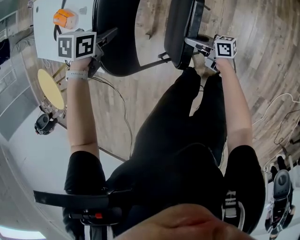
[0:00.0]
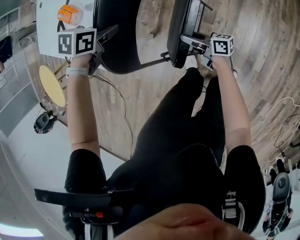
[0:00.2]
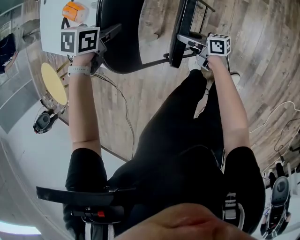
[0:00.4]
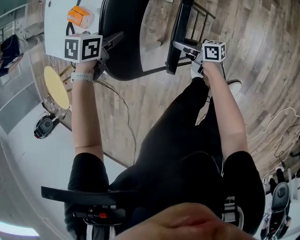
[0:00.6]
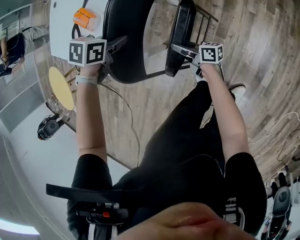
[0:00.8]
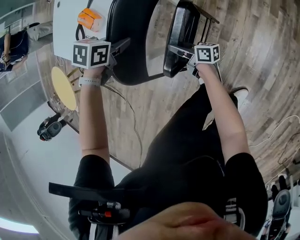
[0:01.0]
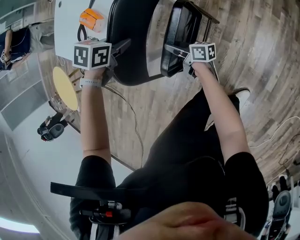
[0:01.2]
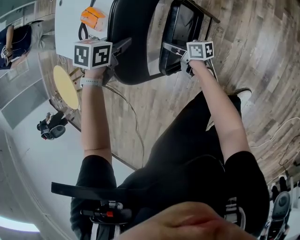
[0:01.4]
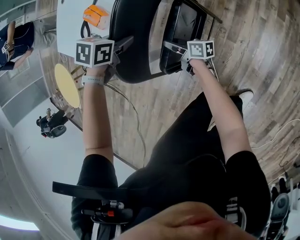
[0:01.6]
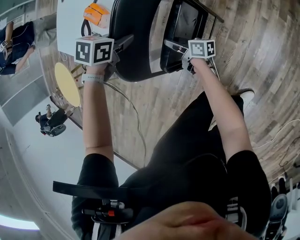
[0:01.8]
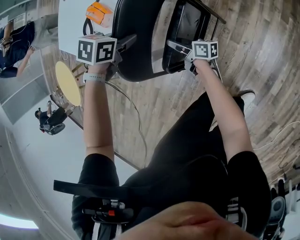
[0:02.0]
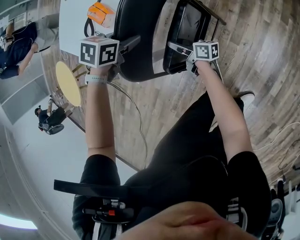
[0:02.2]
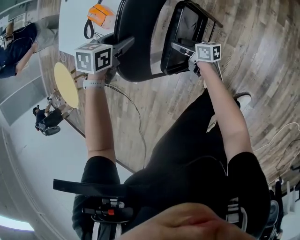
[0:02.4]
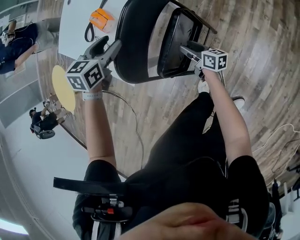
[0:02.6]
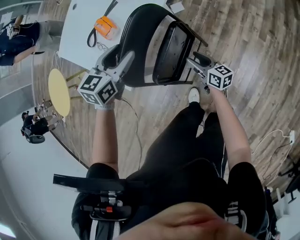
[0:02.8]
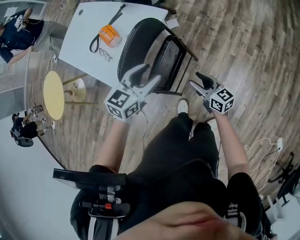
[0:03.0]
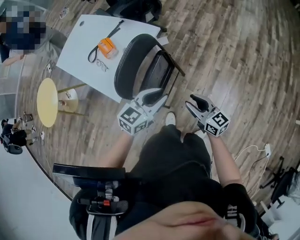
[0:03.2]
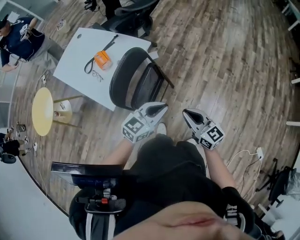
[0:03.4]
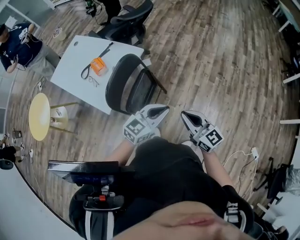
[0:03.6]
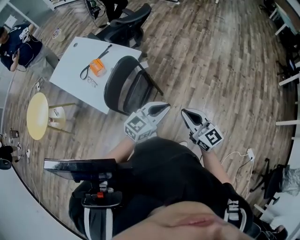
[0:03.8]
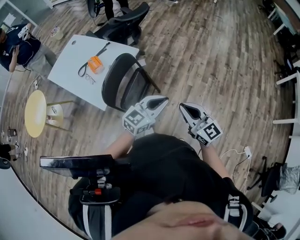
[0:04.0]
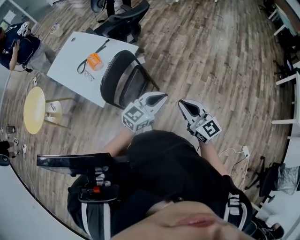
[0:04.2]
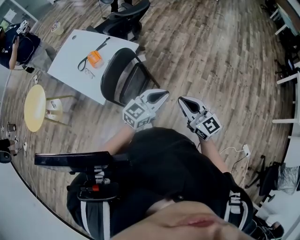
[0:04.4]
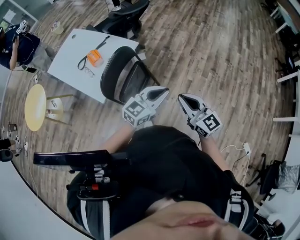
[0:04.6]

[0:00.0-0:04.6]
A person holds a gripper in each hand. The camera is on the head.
0.0 to 1.6 s: The left gripper moves some 10 cm; the right gripper changes place by some 25 cm.
1.6 to 3.0 s: The right gripper heads to the right and upward, covering some 30 cm, and rolls counterclockwise, seen from behind, by about 40 degrees, while the left gripper is displaced upward, to the right and backward by roughly 25 cm, points its fingers roughly 50 degrees further upward, and opens up.
3.0 to 4.6 s: The right gripper shifts roughly 30 cm upward and backward, swivels about 30 degrees, and closes its fingers, while the left gripper goes approximately 25 cm to the right, upward and backward, turns by about 20 degrees, and closes its fingers.

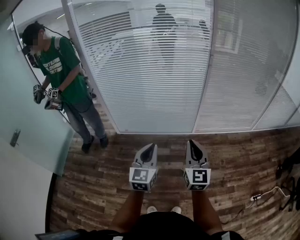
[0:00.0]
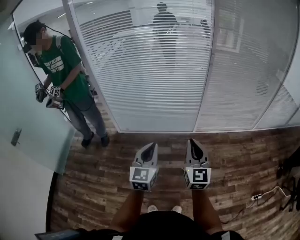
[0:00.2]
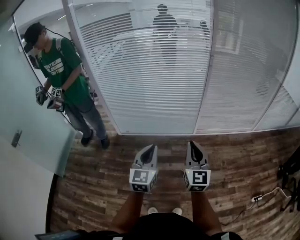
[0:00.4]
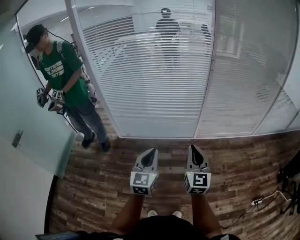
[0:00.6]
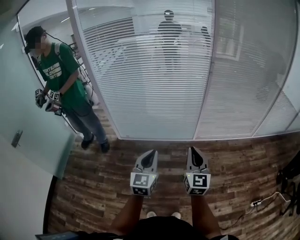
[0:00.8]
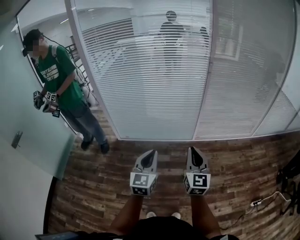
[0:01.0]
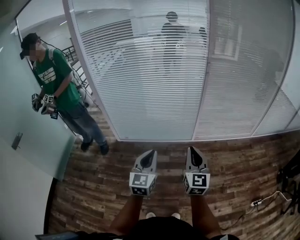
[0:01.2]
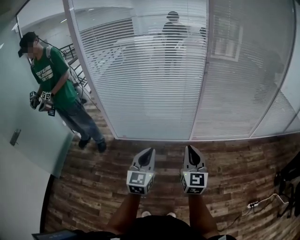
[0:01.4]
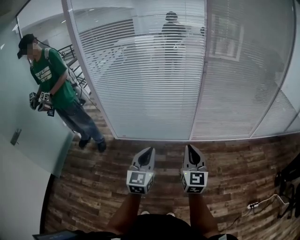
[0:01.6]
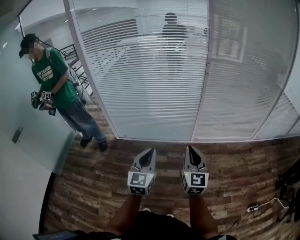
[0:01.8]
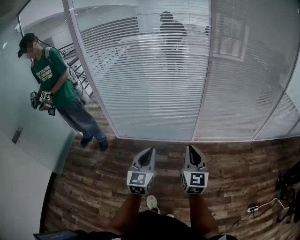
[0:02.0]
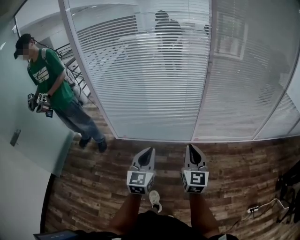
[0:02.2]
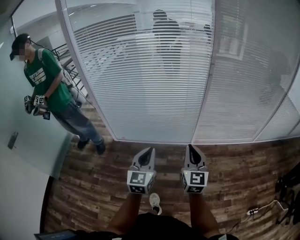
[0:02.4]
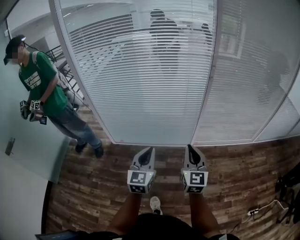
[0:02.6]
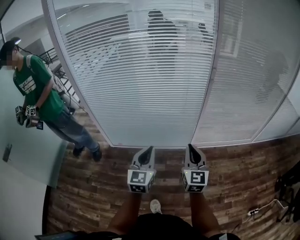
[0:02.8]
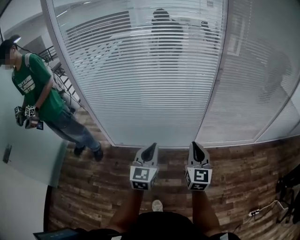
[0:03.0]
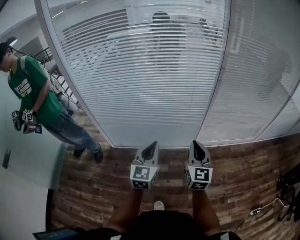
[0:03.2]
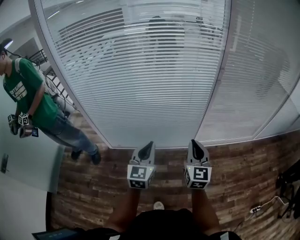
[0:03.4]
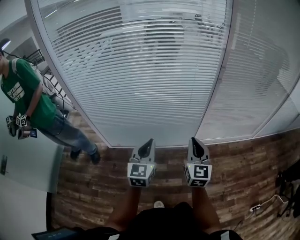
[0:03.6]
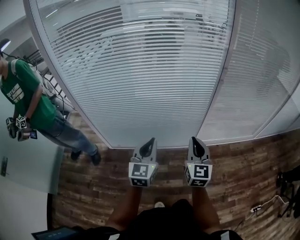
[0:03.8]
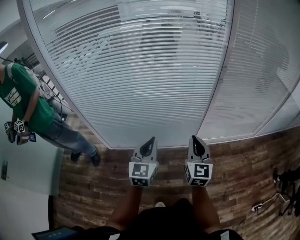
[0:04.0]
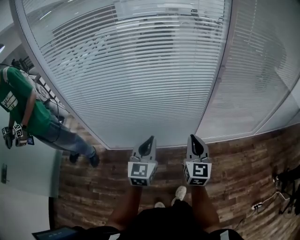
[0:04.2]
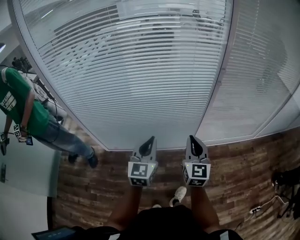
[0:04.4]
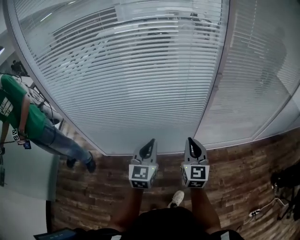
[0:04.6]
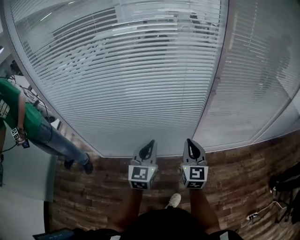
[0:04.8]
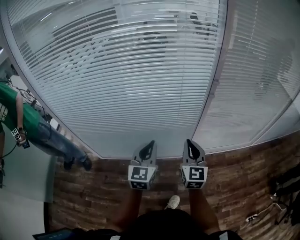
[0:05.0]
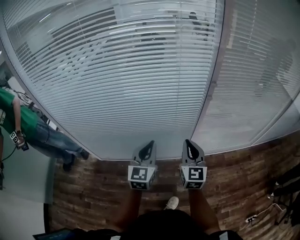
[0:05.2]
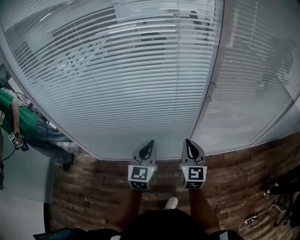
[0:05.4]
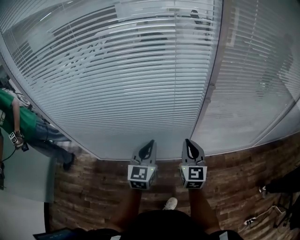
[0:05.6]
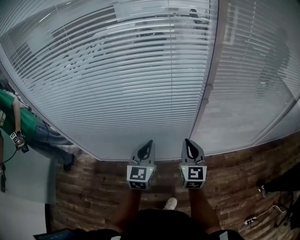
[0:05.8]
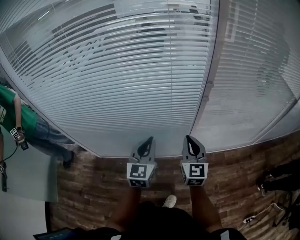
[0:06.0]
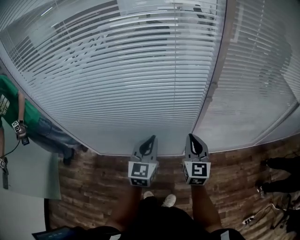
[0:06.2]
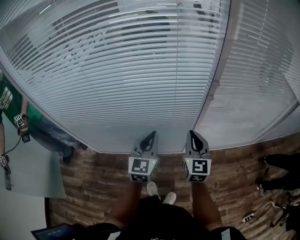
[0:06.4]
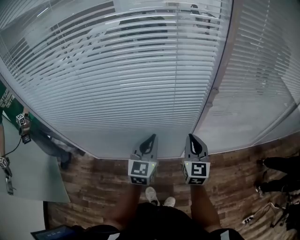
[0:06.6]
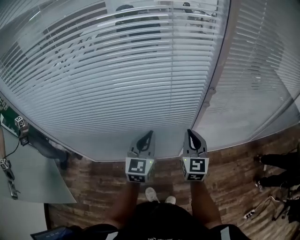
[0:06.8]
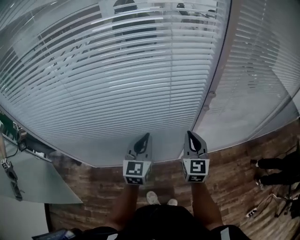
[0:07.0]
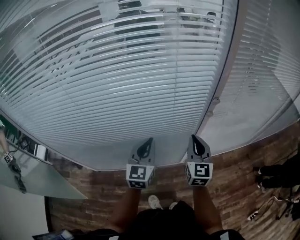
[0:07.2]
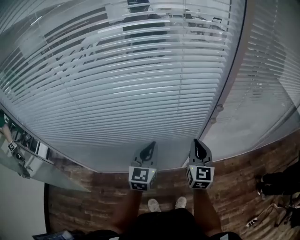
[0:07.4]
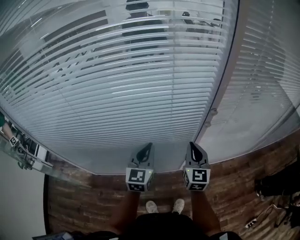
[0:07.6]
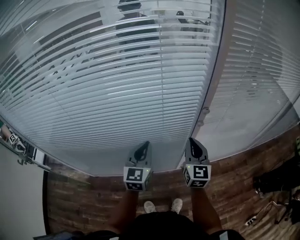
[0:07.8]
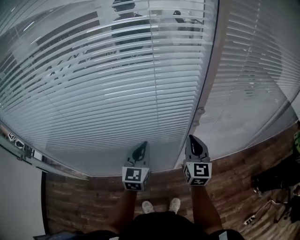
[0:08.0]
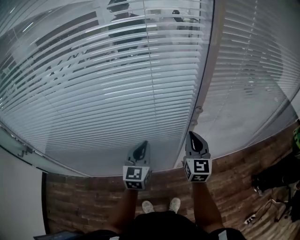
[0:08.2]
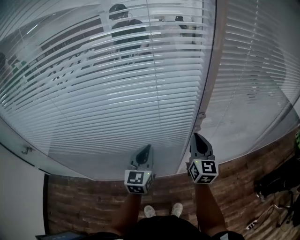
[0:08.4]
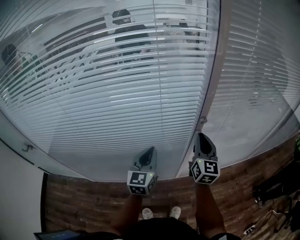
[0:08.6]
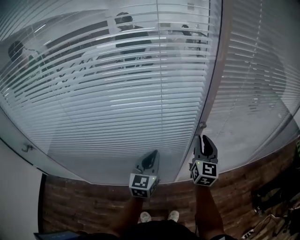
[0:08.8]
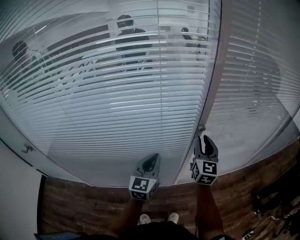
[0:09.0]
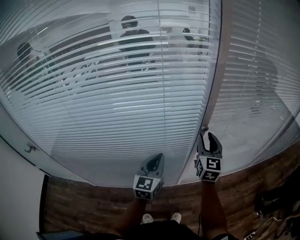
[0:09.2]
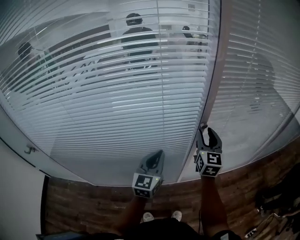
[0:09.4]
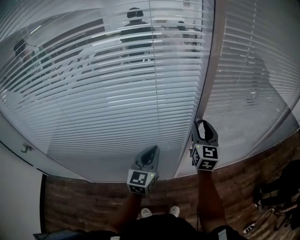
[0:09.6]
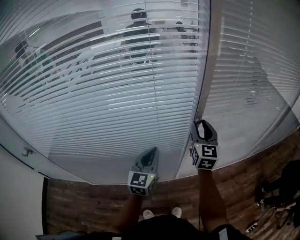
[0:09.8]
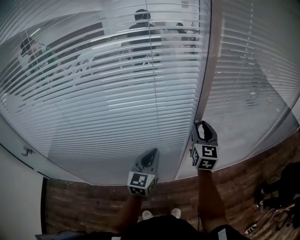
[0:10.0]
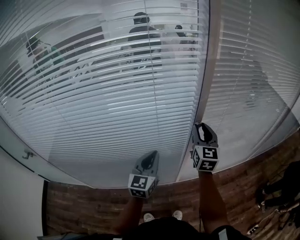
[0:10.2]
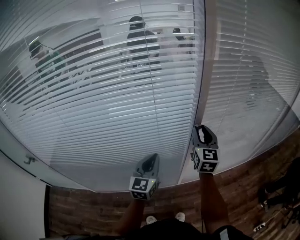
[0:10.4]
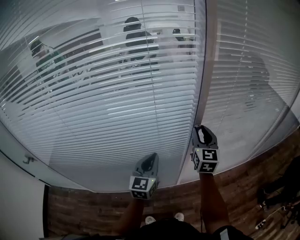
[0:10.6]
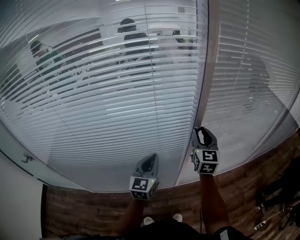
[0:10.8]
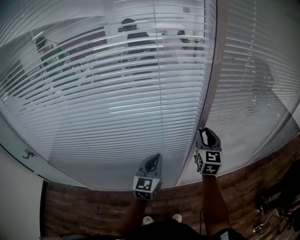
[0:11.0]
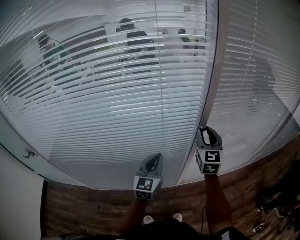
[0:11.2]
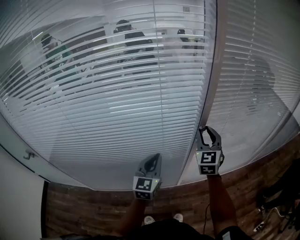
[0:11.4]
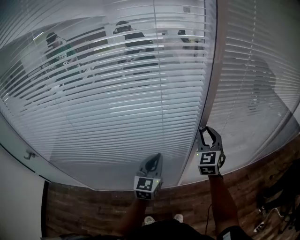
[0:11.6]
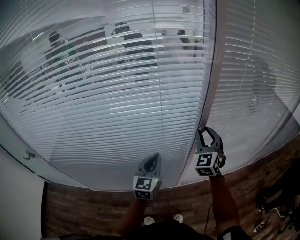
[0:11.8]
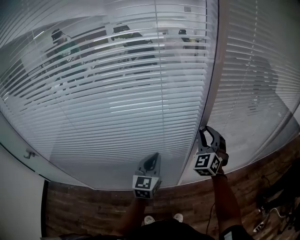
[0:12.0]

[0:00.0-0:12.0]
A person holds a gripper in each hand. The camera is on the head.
0.0 to 1.6 s: The two grippers go some 5 cm to the right.
1.6 to 3.0 s: The two grippers go roughly 25 cm forward.
3.0 to 4.4 s: Both grippers travel together forward, roughly 15 cm.
4.4 to 6.0 s: The grippers both shift forward and to the right by about 20 cm.
6.0 to 7.6 s: The two grippers go about 10 cm forward.
7.6 to 9.0 s: The left gripper goes roughly 5 cm to the right. The right gripper moves to the right, forward and upward, some 10 cm, and opens its fingers.
9.0 to 10.4 s: The grippers move only a little.
10.4 to 12.0 s: The right gripper rolls counterclockwise, seen from behind, by approximately 50 degrees.

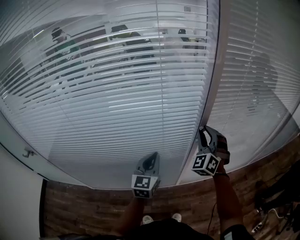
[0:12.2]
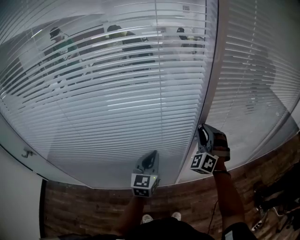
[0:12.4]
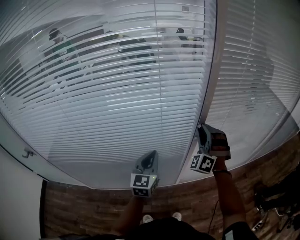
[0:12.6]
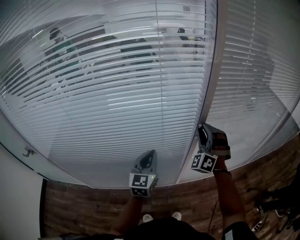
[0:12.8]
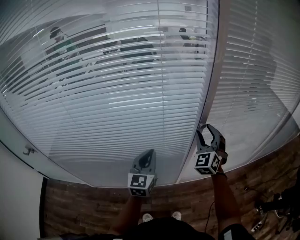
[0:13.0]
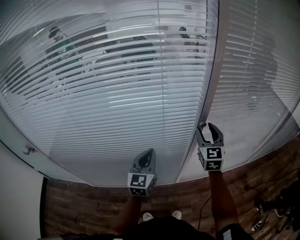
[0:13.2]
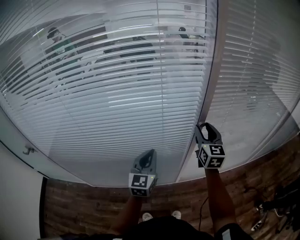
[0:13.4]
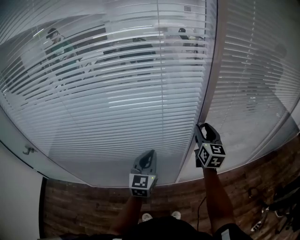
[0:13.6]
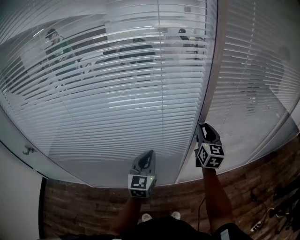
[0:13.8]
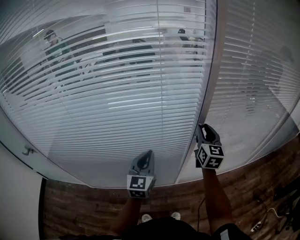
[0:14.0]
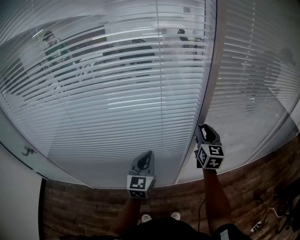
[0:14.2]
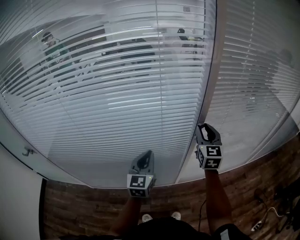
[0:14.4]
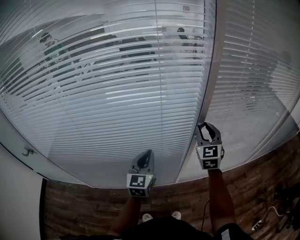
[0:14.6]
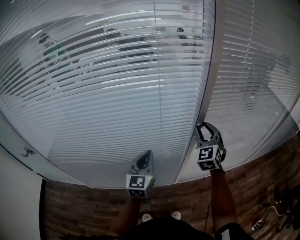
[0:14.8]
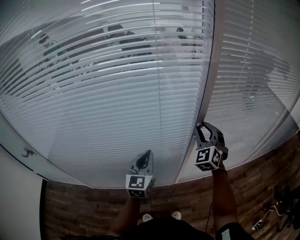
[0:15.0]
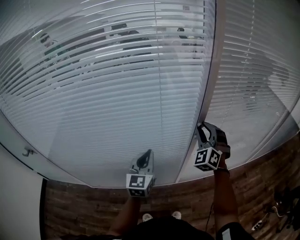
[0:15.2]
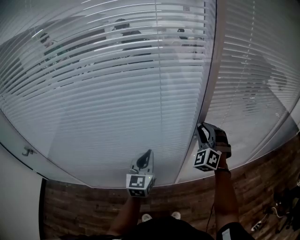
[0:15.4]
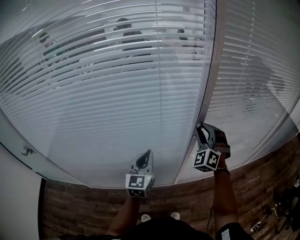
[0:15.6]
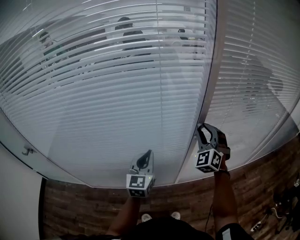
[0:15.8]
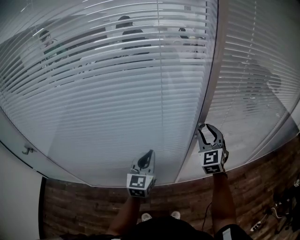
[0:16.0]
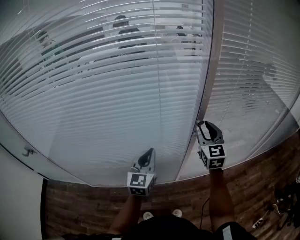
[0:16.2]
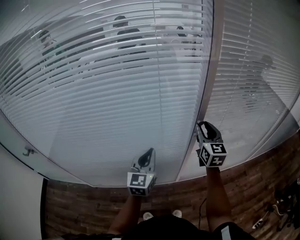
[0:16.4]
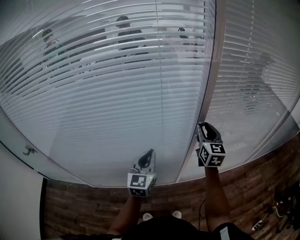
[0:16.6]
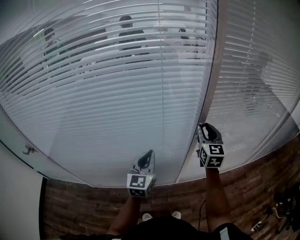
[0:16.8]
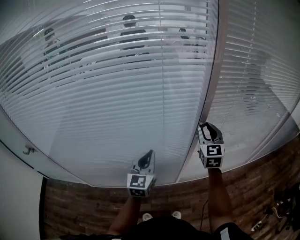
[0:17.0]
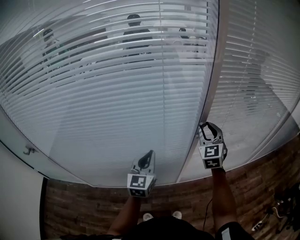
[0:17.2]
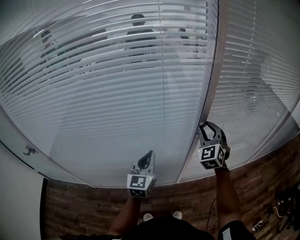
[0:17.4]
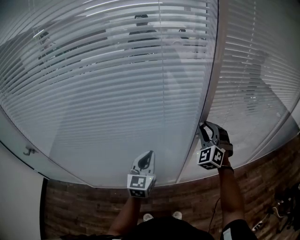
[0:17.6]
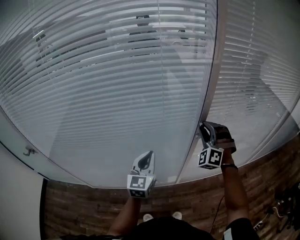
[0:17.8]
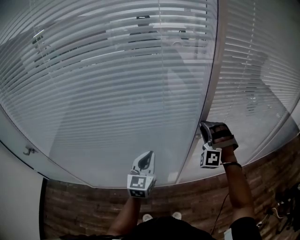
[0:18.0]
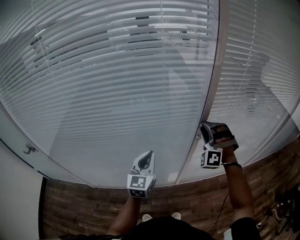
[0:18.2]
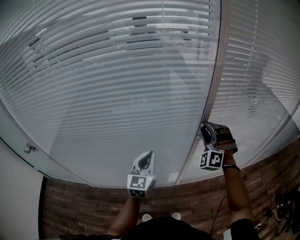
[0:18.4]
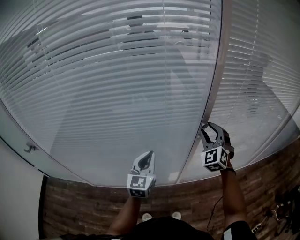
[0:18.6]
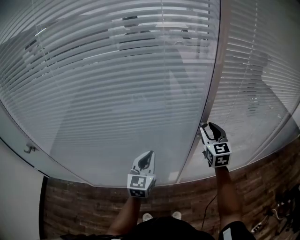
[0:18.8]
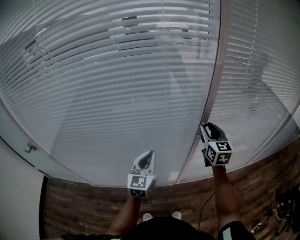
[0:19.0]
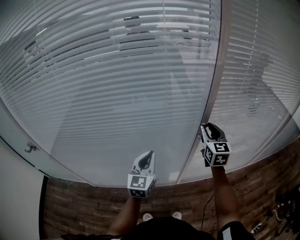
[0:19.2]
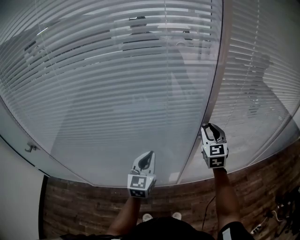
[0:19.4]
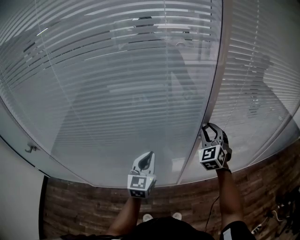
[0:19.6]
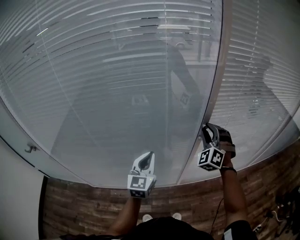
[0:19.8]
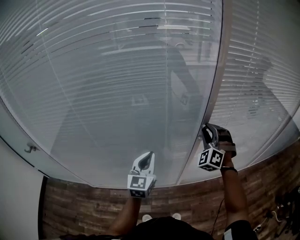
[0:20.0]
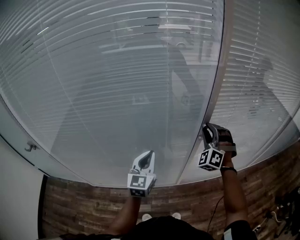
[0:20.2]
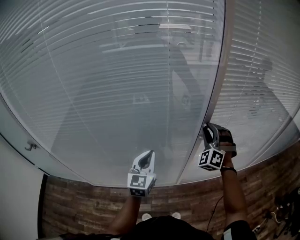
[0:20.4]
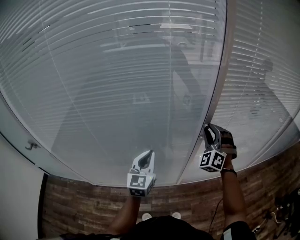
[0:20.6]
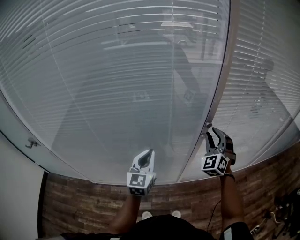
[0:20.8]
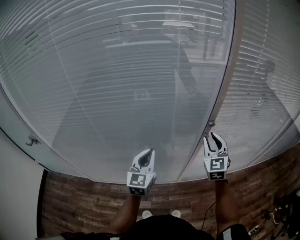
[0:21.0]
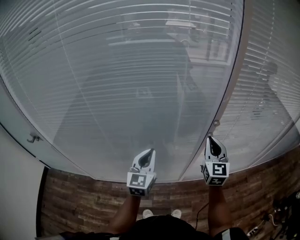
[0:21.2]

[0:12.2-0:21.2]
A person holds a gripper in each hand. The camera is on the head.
12.2 to 13.8 s: The right gripper rotates around the line of its fingers by roughly 60 degrees, clockwise from behind.
13.8 to 15.2 s: The right gripper rolls counterclockwise, seen from behind, by roughly 60 degrees.
15.2 to 16.6 s: The right gripper twists roughly 60 degrees clockwise, seen from behind.
16.6 to 18.2 s: The right gripper twists roughly 100 degrees counterclockwise, seen from behind.
18.2 to 19.8 s: The right gripper changes its angle by roughly 30 degrees.
19.8 to 21.2 s: The right gripper heads backward, covering roughly 5 cm, twists roughly 60 degrees clockwise, seen from behind, and closes.
